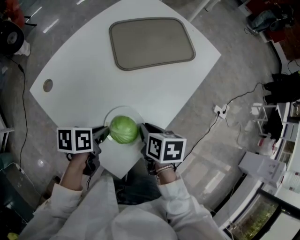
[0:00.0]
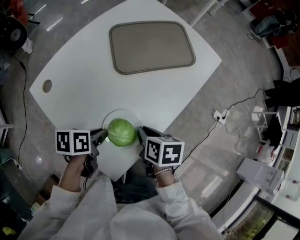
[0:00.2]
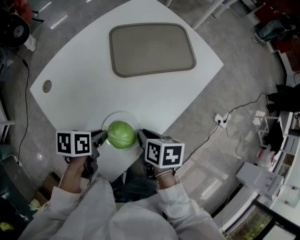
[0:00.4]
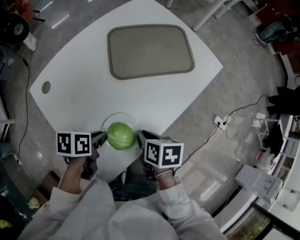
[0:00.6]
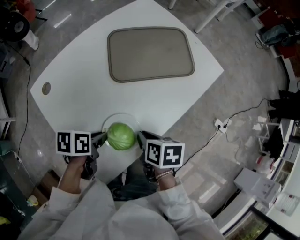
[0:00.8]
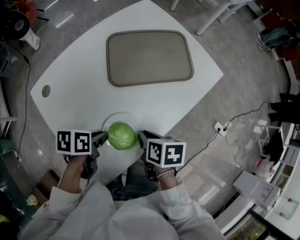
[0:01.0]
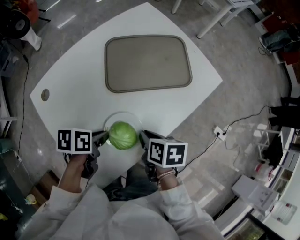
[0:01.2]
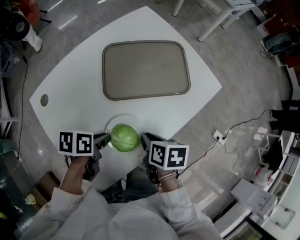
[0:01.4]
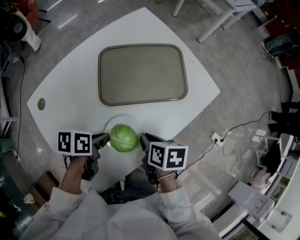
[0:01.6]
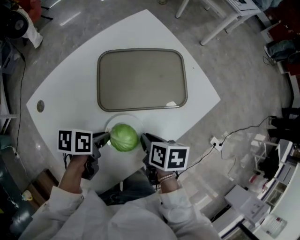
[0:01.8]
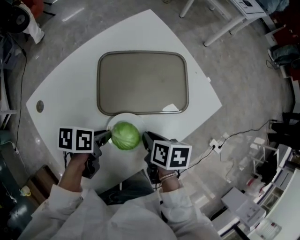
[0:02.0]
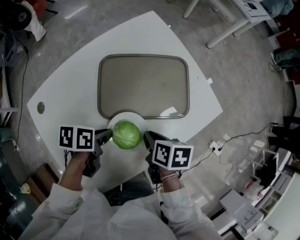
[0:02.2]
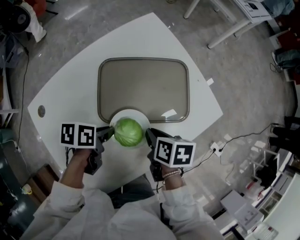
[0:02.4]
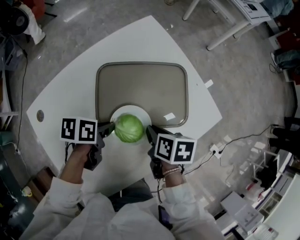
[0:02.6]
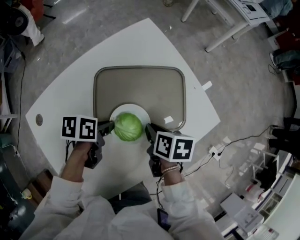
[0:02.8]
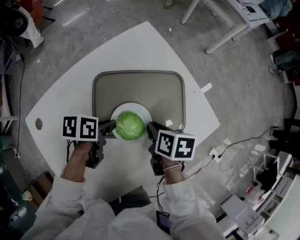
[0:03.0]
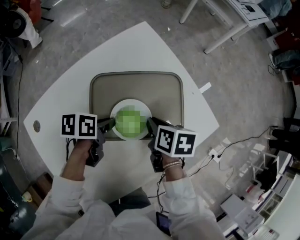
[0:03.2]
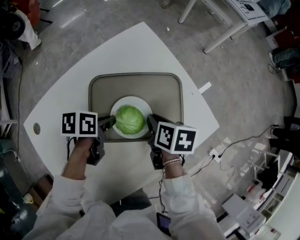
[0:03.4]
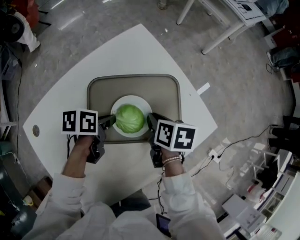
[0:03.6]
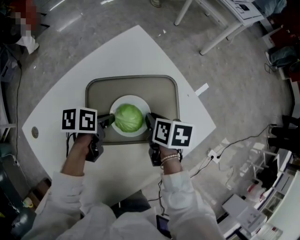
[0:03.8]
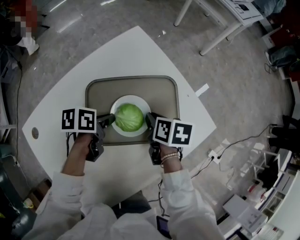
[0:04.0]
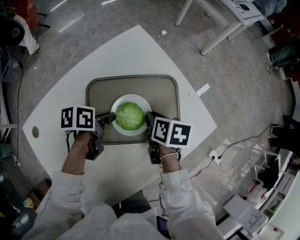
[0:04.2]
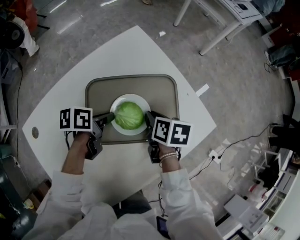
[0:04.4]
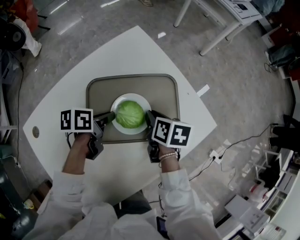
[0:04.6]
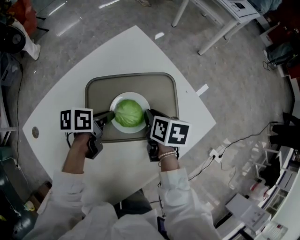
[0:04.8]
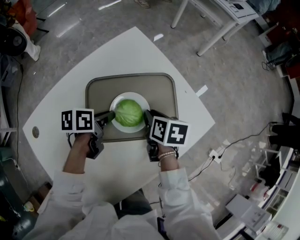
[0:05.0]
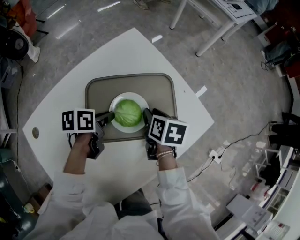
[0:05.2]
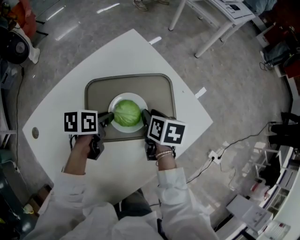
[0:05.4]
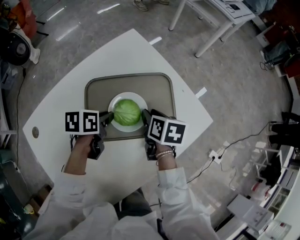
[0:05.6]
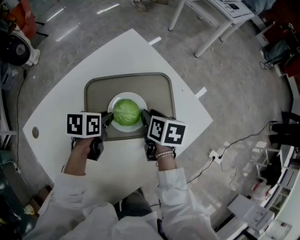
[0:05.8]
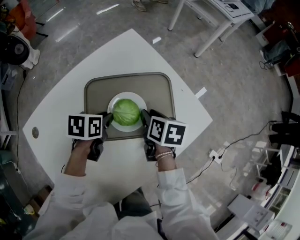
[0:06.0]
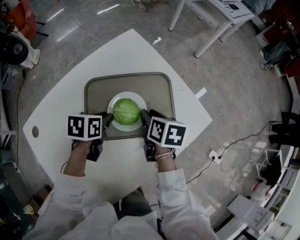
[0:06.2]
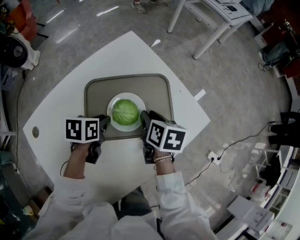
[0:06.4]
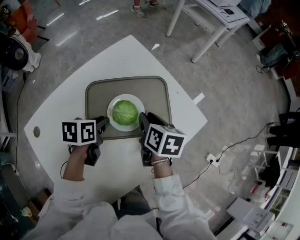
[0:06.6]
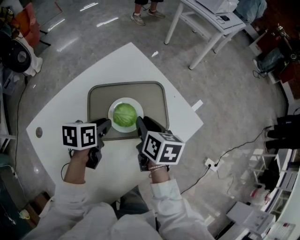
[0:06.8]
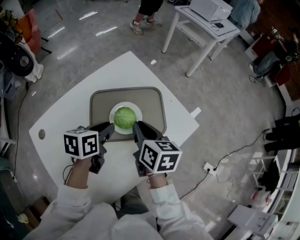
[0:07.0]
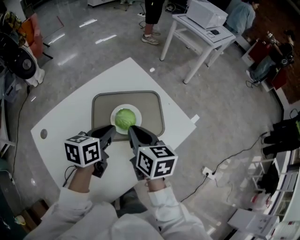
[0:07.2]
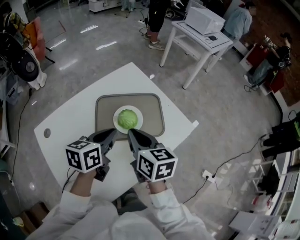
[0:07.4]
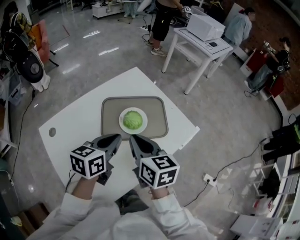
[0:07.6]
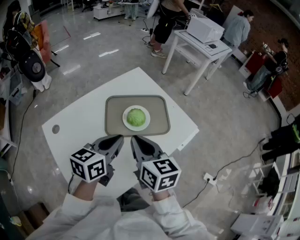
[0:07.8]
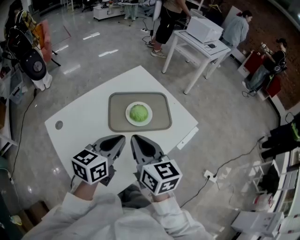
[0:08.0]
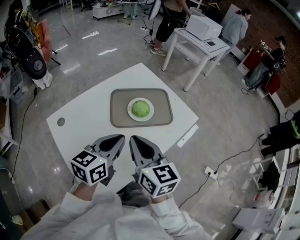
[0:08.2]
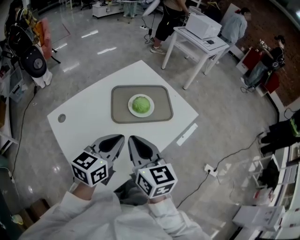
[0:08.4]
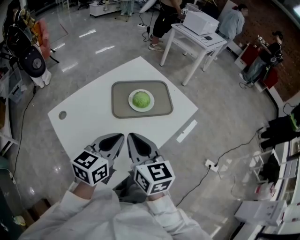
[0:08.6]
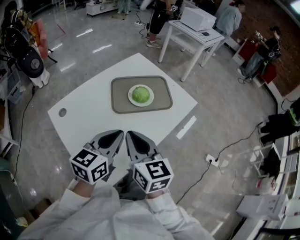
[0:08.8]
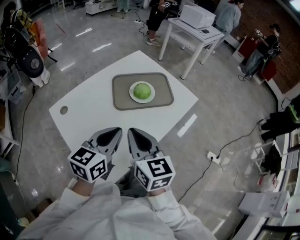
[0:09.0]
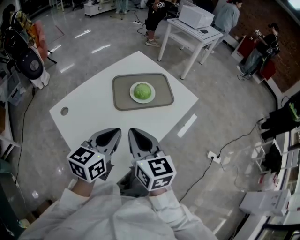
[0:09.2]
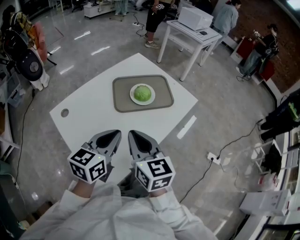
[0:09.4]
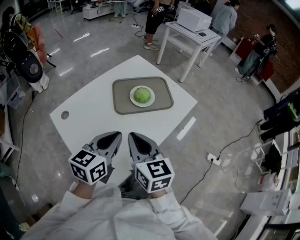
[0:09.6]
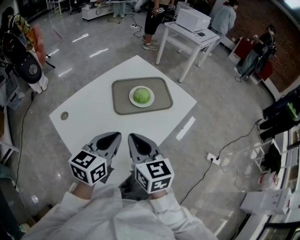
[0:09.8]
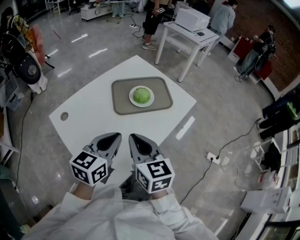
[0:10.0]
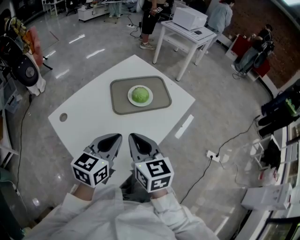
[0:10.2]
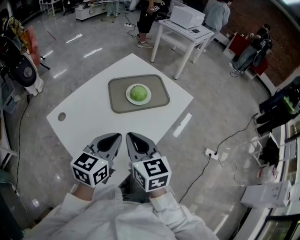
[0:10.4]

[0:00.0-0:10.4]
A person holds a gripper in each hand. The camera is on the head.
0.0 to 1.4 s: The grippers both shift forward and to the right by about 10 cm.
1.4 to 3.0 s: Both grippers travel together forward, some 20 cm.
3.0 to 4.4 s: The two grippers go some 5 cm forward.
4.4 to 6.0 s: The left gripper turns by approximately 20 degrees.
6.0 to 7.4 s: The grippers both shift upward and backward by about 20 cm. The left gripper rotates some 30 degrees. The right gripper swivels about 30 degrees, and closes.
7.4 to 9.0 s: The grippers both shift backward by roughly 20 cm.
9.0 to 10.4 s: The grippers stay close to where they were, moving slightly.

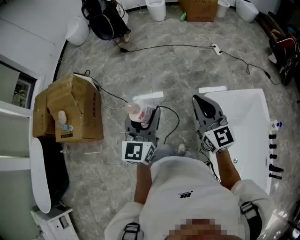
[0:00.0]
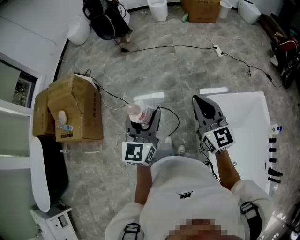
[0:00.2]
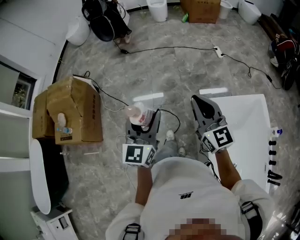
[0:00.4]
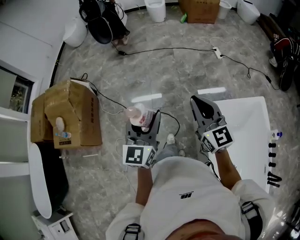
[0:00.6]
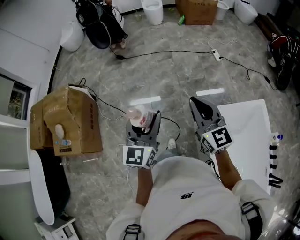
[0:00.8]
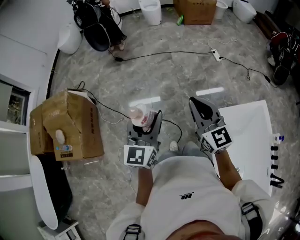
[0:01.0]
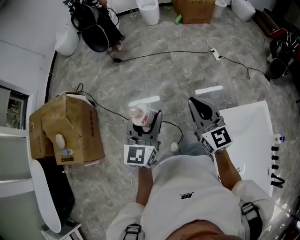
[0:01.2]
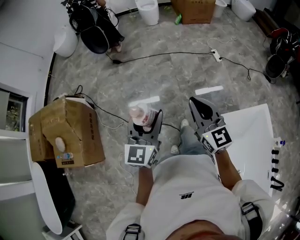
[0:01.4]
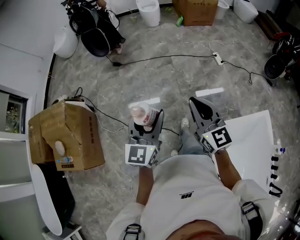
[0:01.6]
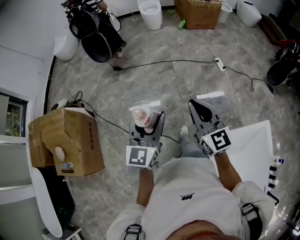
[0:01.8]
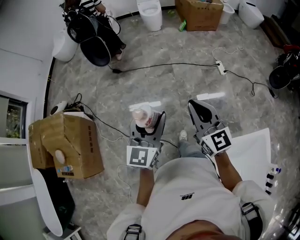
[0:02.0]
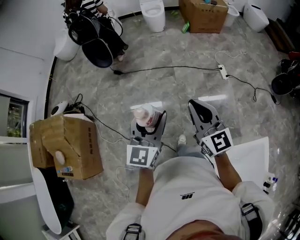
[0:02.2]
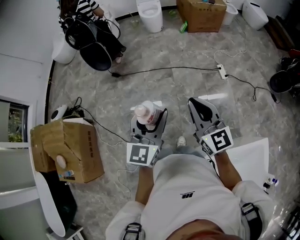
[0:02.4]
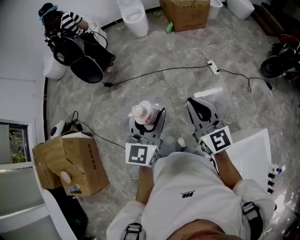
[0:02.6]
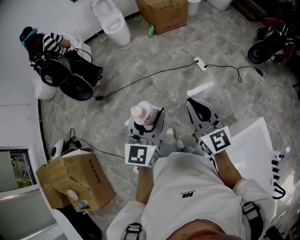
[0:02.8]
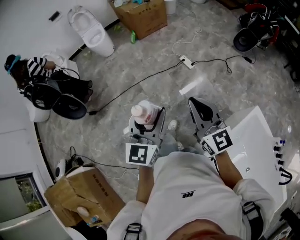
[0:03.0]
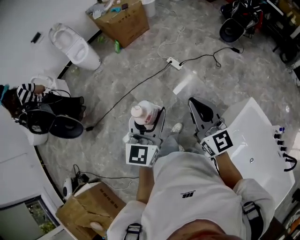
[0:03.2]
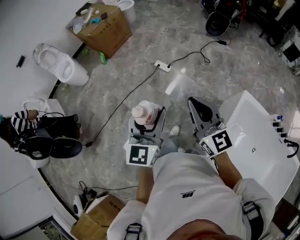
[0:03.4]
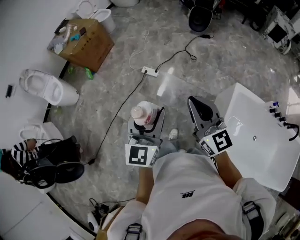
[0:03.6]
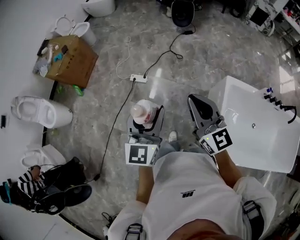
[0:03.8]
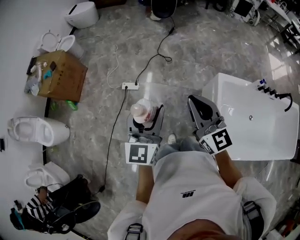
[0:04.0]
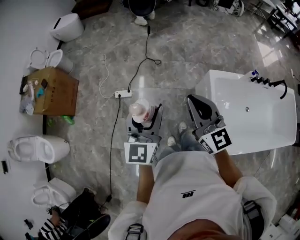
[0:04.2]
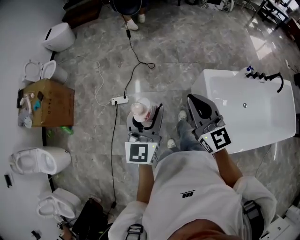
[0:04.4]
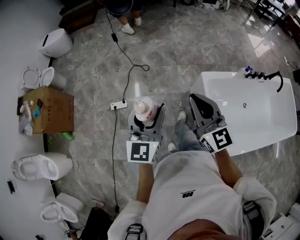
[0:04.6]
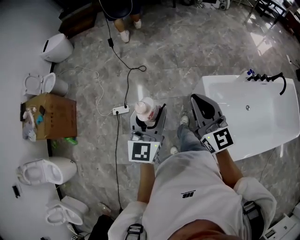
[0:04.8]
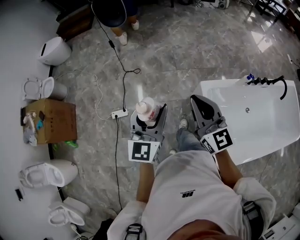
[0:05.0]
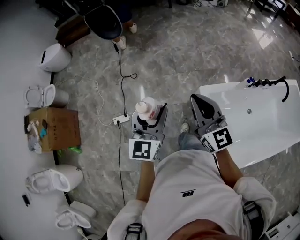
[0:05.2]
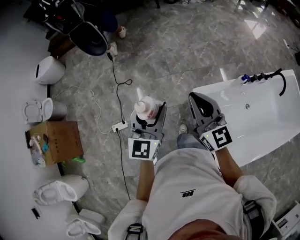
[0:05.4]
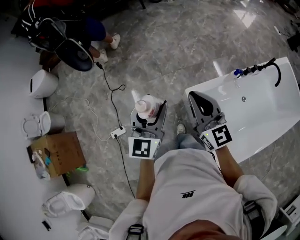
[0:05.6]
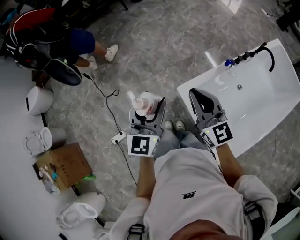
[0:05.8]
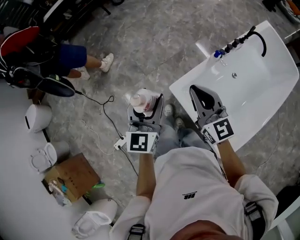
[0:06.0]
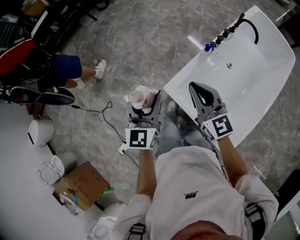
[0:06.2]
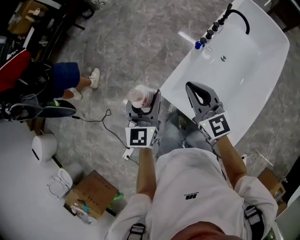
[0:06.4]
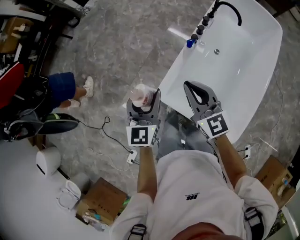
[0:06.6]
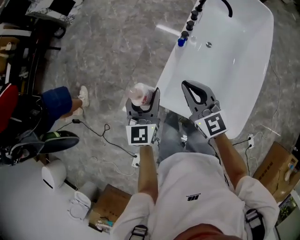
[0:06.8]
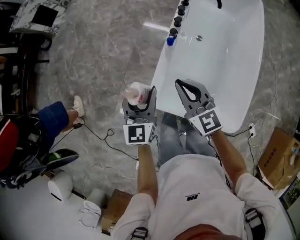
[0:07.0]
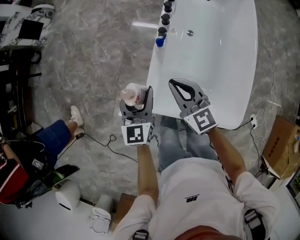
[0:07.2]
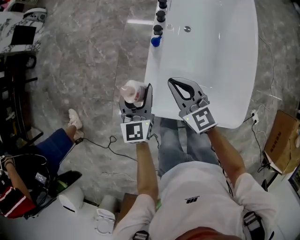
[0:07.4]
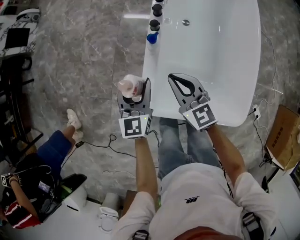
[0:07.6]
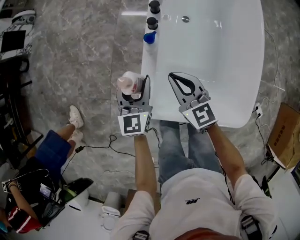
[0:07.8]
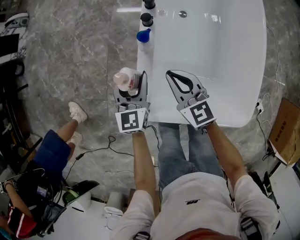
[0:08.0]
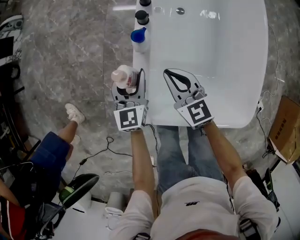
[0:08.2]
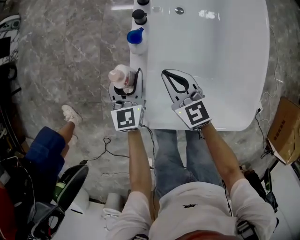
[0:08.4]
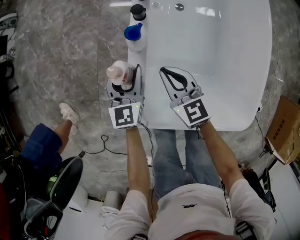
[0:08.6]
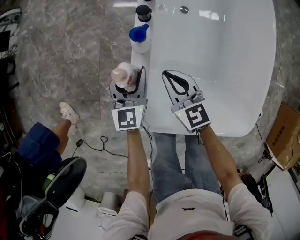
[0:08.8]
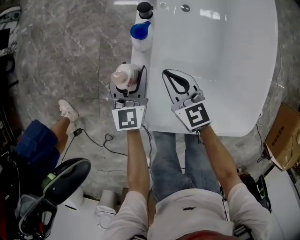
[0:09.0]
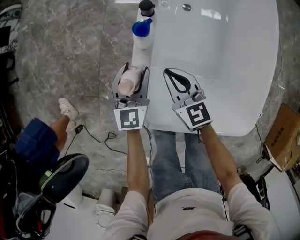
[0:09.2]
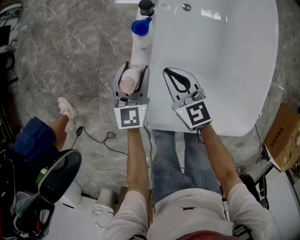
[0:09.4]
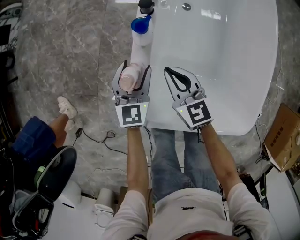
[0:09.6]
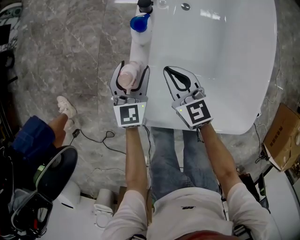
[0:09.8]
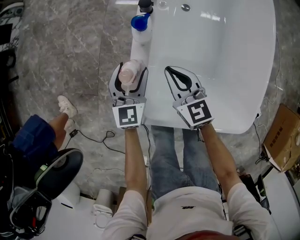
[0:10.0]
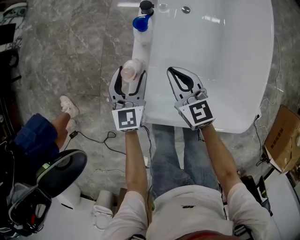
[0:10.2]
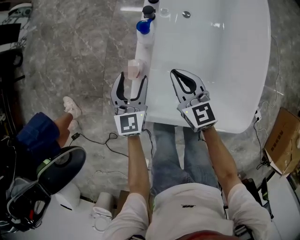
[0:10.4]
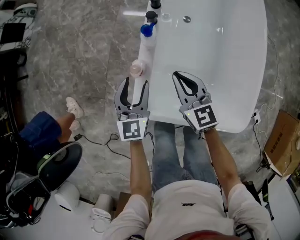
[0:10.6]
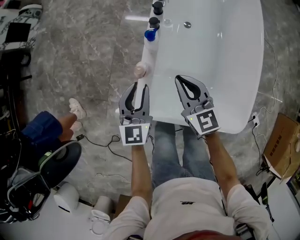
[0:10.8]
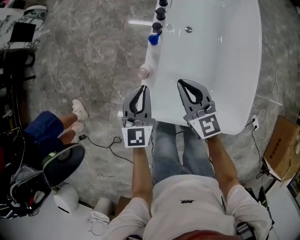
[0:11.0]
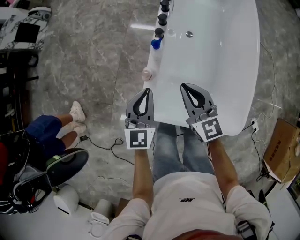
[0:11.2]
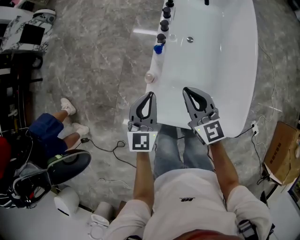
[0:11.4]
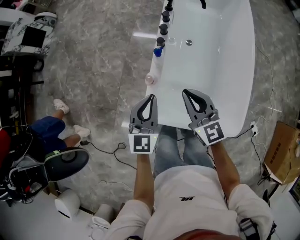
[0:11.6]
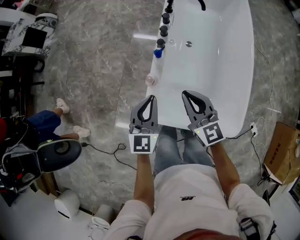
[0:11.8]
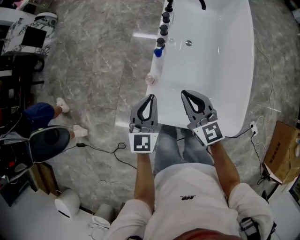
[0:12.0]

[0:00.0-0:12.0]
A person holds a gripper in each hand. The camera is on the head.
0.0 to 1.6 s: Both grippers travel together forward, roughly 35 cm.
1.6 to 3.0 s: Both grippers are carried roughly 40 cm. The left gripper changes its angle by approximately 30 degrees; the right gripper swivels some 20 degrees.
3.0 to 4.4 s: The left gripper moves roughly 40 cm, and turns by approximately 60 degrees. The right gripper shifts by approximately 35 cm, and rotates some 60 degrees.
4.4 to 6.0 s: The pair of grippers is taken roughly 50 cm. The right gripper rotates about 30 degrees. Meanwhile the left gripper changes its angle by approximately 30 degrees.
6.0 to 7.6 s: The right gripper is displaced downward by about 30 cm, and swivels some 40 degrees, while the left gripper changes place by some 50 cm, and changes its angle by some 40 degrees.
7.6 to 9.0 s: Both grippers travel together downward, roughly 20 cm.
9.0 to 10.4 s: The left gripper moves backward and upward, some 10 cm, while the right gripper moves upward, roughly 5 cm.
10.4 to 12.0 s: The two grippers go some 25 cm upward. The left gripper closes.

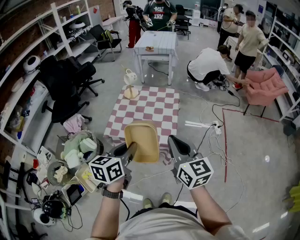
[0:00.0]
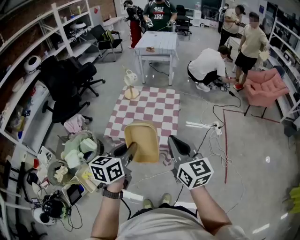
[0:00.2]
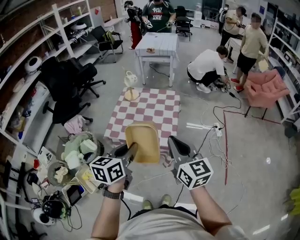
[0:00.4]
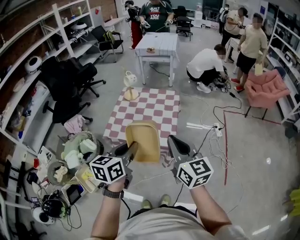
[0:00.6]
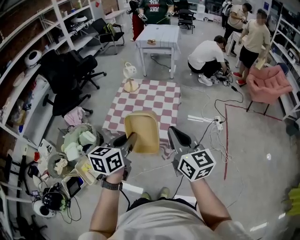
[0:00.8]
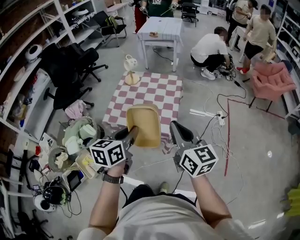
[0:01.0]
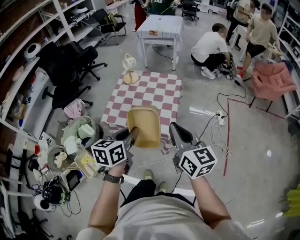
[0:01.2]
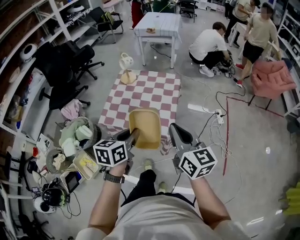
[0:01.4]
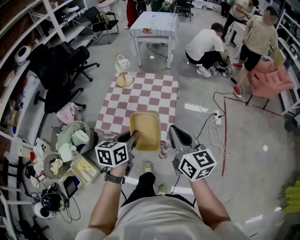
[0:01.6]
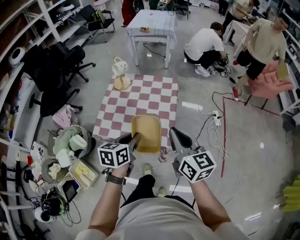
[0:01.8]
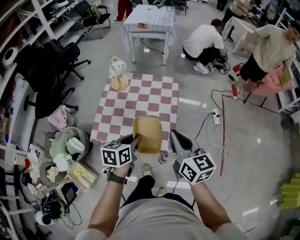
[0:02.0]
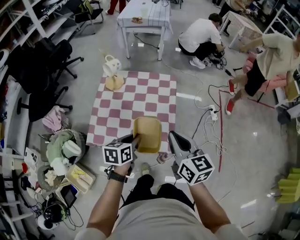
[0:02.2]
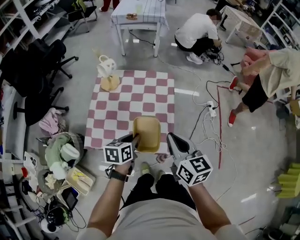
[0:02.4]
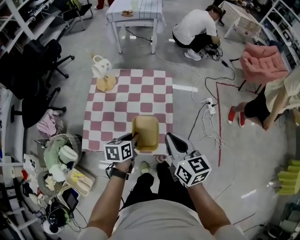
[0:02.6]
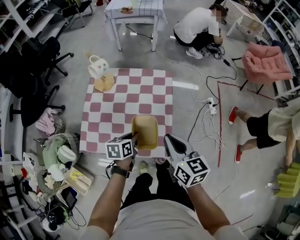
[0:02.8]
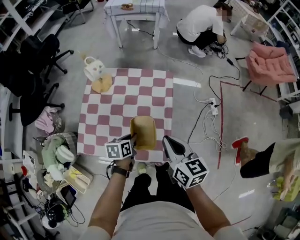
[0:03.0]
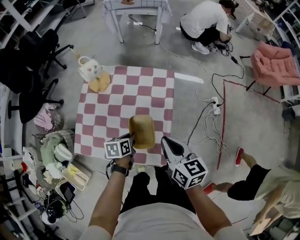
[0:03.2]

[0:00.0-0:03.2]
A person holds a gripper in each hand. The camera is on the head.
0.0 to 1.6 s: The grippers both shift forward and downward by approximately 15 cm.
1.6 to 3.2 s: The right gripper travels forward and downward by some 30 cm, and rotates about 20 degrees; the left gripper moves downward and forward, about 40 cm, and changes its angle by about 30 degrees.
